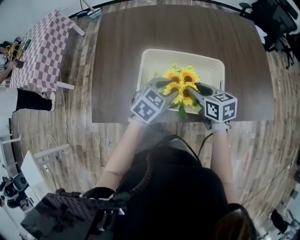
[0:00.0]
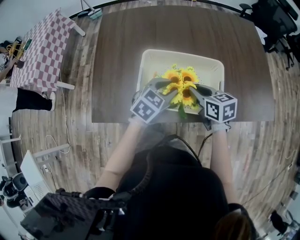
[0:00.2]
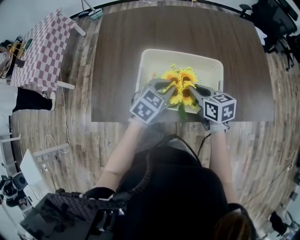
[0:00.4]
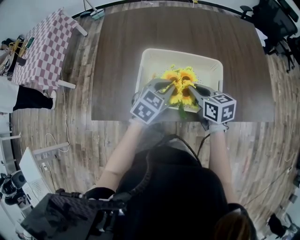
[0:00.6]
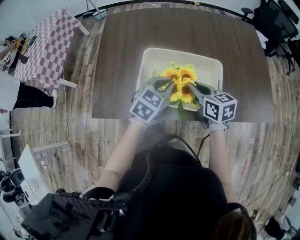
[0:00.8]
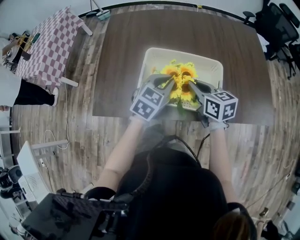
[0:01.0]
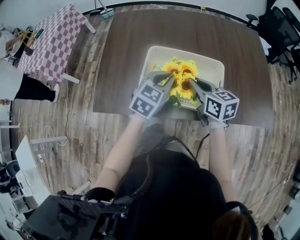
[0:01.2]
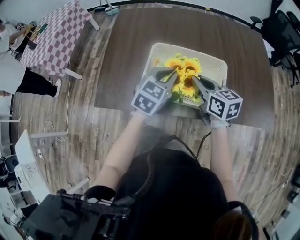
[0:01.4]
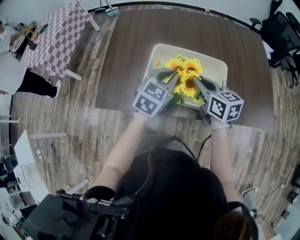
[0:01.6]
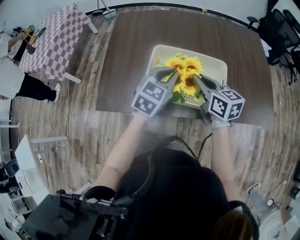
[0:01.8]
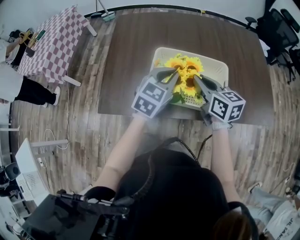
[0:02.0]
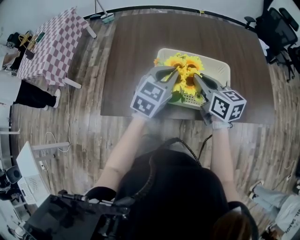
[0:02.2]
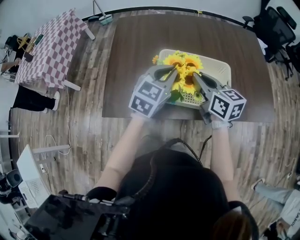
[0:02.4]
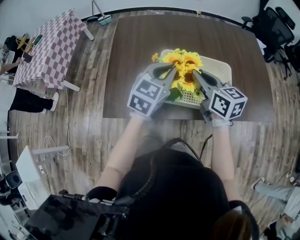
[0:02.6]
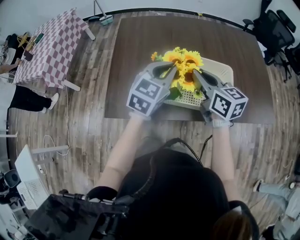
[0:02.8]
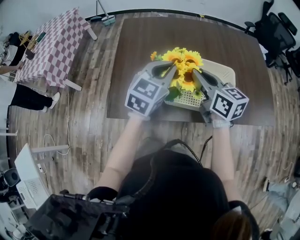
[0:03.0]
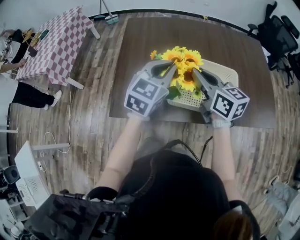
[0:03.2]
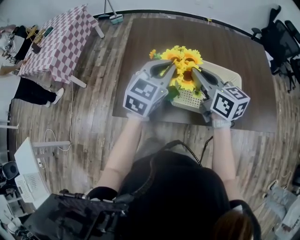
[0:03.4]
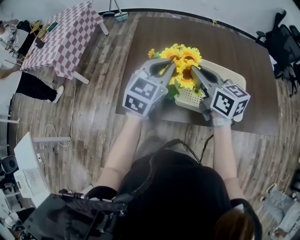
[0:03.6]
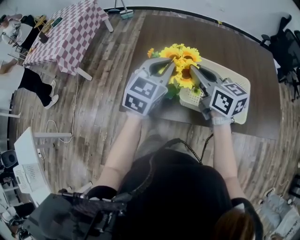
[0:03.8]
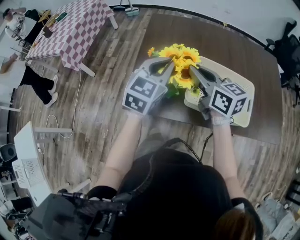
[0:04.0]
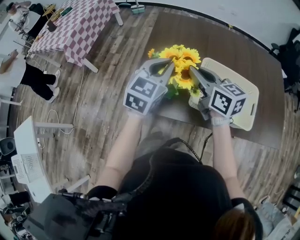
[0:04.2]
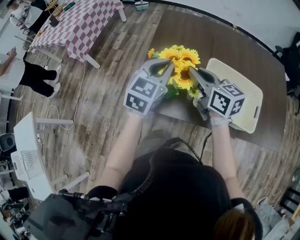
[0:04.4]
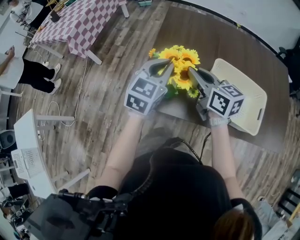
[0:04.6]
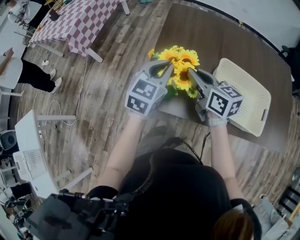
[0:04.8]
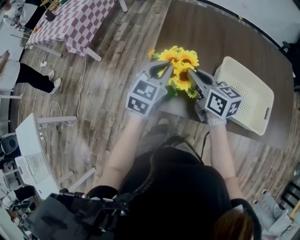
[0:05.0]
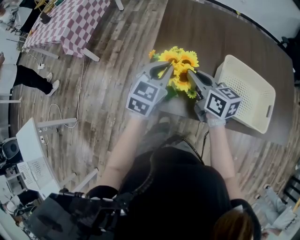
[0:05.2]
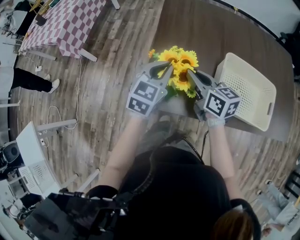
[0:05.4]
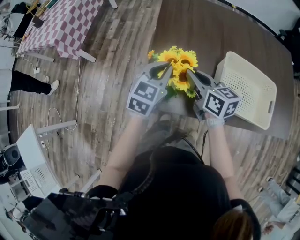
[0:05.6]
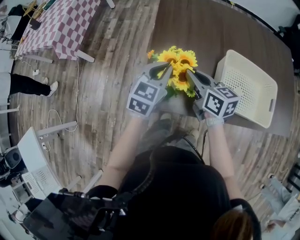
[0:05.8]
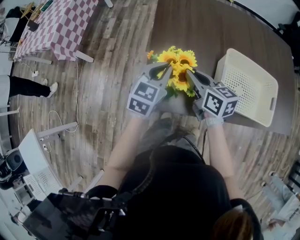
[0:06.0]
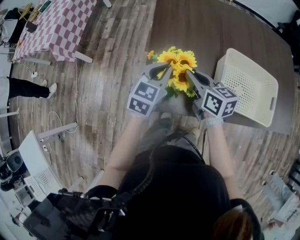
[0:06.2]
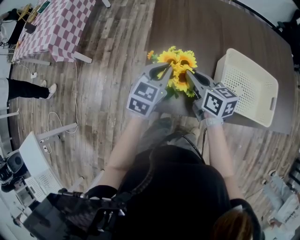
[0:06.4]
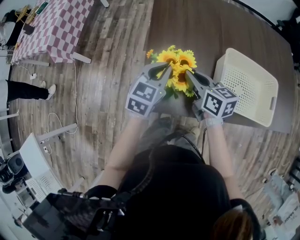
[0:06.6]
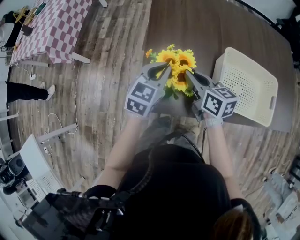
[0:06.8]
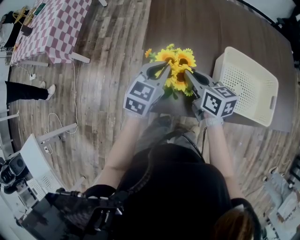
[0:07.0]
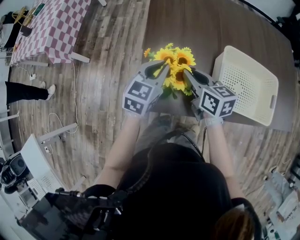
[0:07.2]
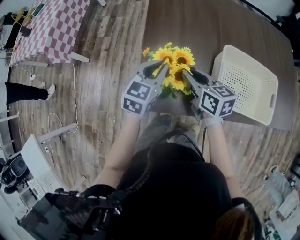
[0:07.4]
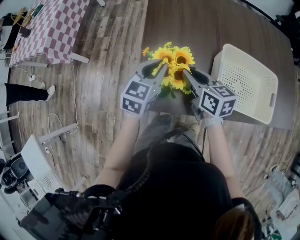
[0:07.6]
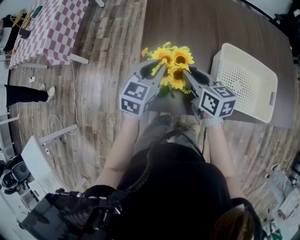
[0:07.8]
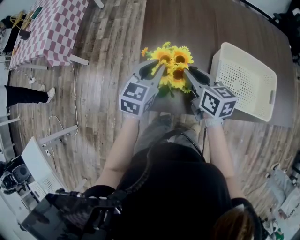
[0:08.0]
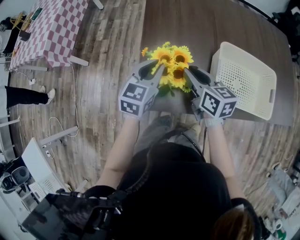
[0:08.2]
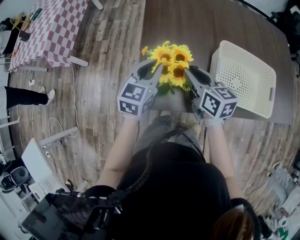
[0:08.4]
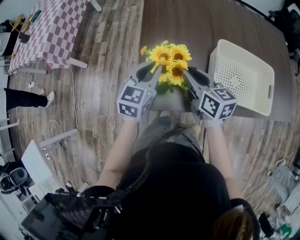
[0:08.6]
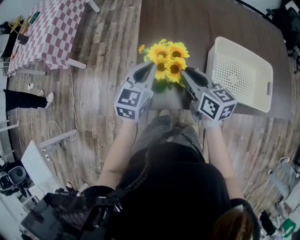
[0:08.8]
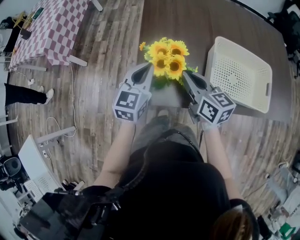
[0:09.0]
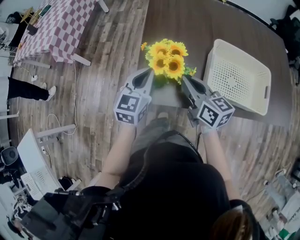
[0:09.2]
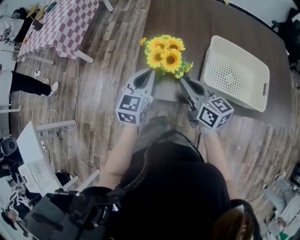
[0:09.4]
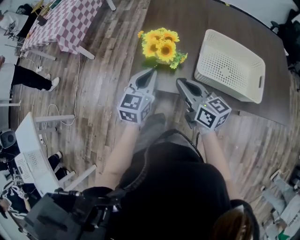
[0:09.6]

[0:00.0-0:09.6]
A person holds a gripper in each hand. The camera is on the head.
0:00.0 to 0:01.6: The two grippers go some 5 cm upward. The left gripper swivels about 20 degrees, and closes its fingers. The right gripper closes.
0:01.6 to 0:03.2: Both grippers travel together to the left and upward, approximately 15 cm.
0:03.2 to 0:04.8: The two grippers go about 20 cm to the left.
0:04.8 to 0:06.4: Both grippers travel together downward, approximately 10 cm.
0:06.4 to 0:08.0: The right gripper opens its fingers.
0:08.0 to 0:09.6: The two grippers go about 15 cm backward. The right gripper closes.

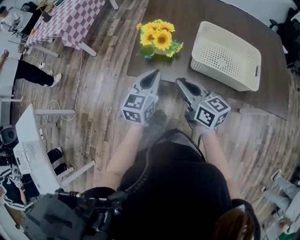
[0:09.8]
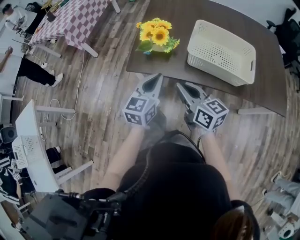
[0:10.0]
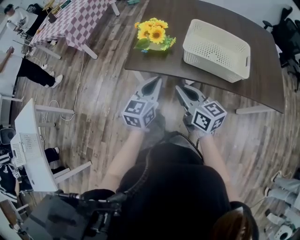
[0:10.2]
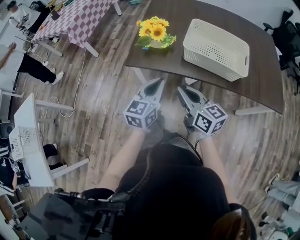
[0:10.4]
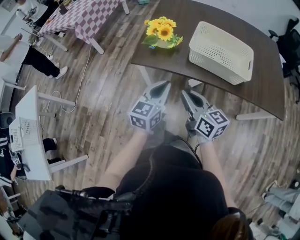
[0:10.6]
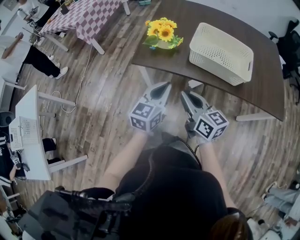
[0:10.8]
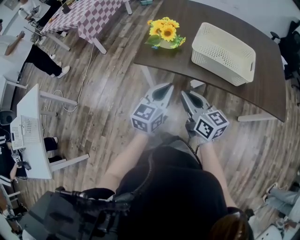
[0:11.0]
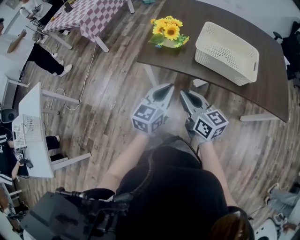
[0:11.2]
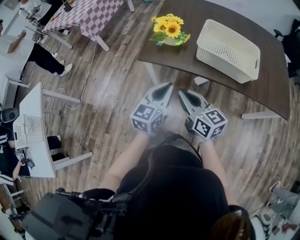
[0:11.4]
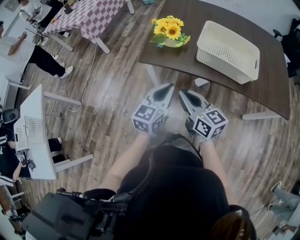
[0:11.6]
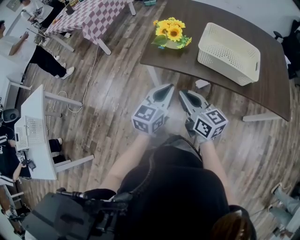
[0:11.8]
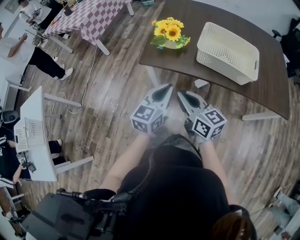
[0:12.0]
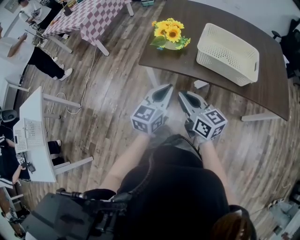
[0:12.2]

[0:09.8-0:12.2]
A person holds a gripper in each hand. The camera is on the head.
0:09.8 to 0:11.0: The two grippers go roughly 15 cm backward.
0:11.0 to 0:12.2: The grippers move only a little.

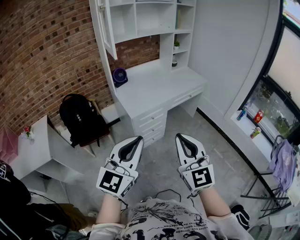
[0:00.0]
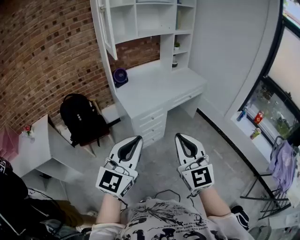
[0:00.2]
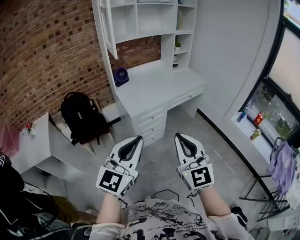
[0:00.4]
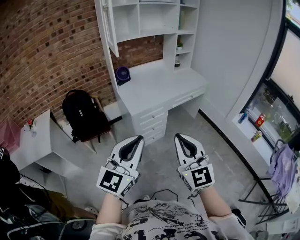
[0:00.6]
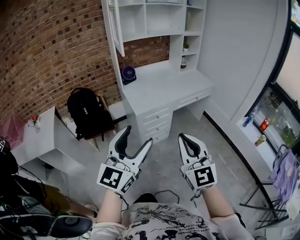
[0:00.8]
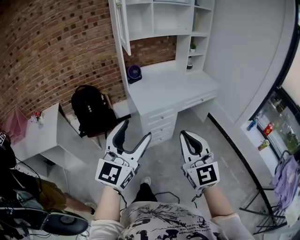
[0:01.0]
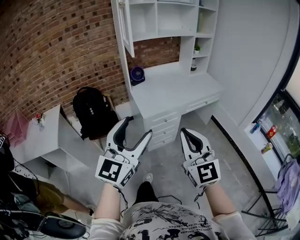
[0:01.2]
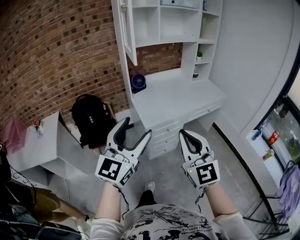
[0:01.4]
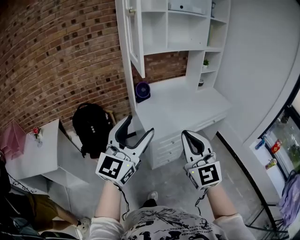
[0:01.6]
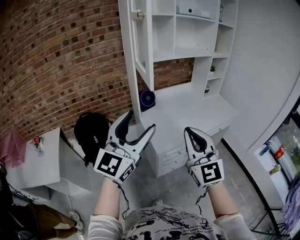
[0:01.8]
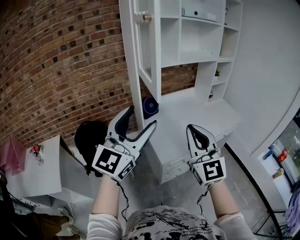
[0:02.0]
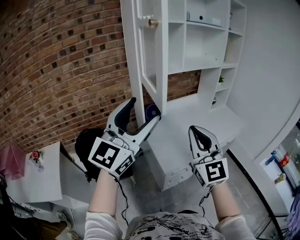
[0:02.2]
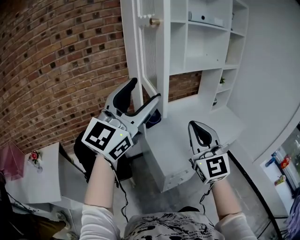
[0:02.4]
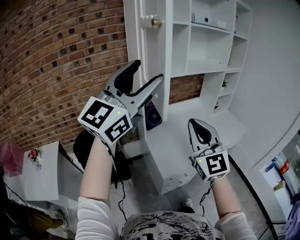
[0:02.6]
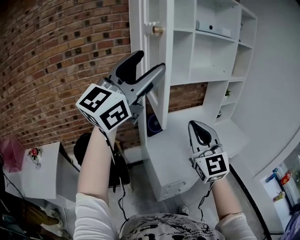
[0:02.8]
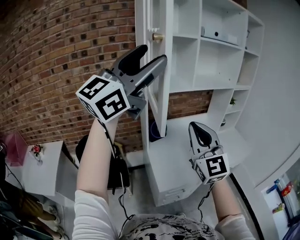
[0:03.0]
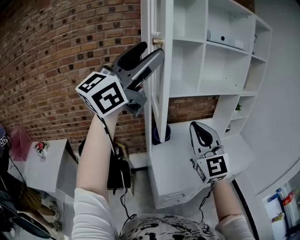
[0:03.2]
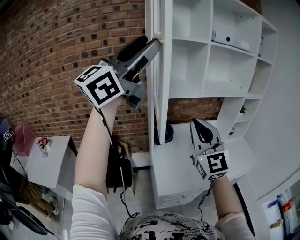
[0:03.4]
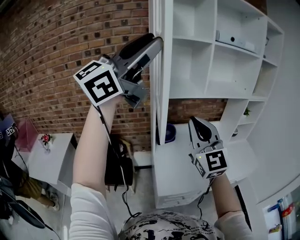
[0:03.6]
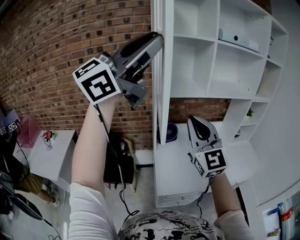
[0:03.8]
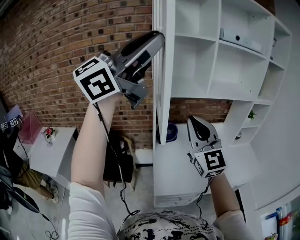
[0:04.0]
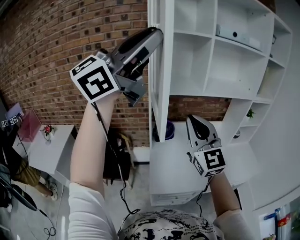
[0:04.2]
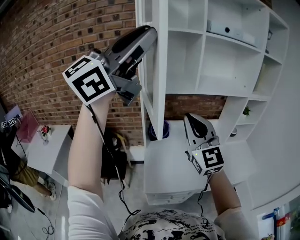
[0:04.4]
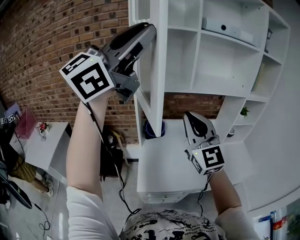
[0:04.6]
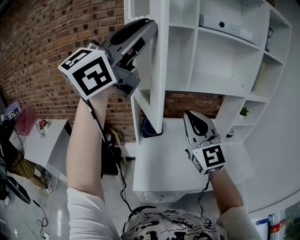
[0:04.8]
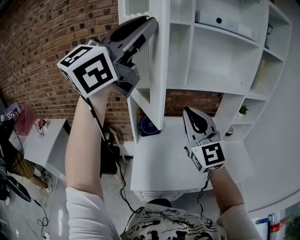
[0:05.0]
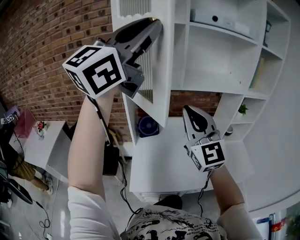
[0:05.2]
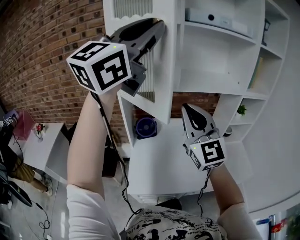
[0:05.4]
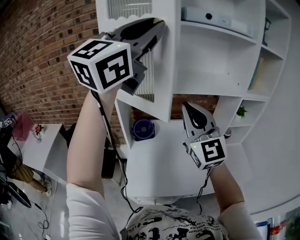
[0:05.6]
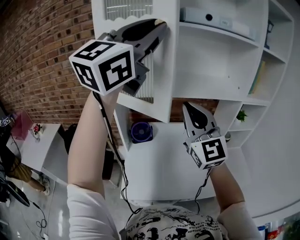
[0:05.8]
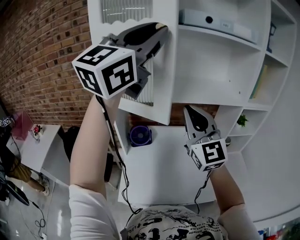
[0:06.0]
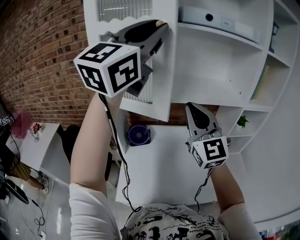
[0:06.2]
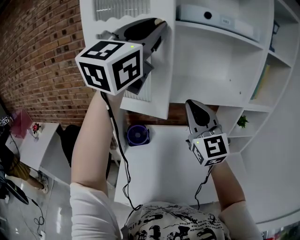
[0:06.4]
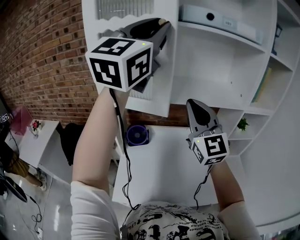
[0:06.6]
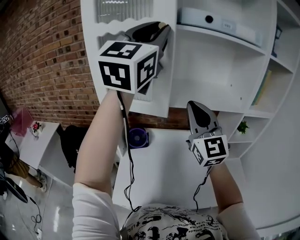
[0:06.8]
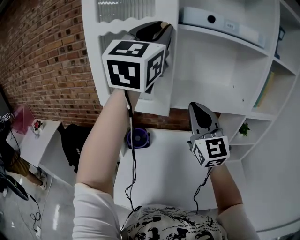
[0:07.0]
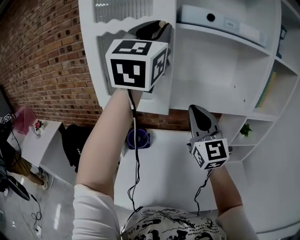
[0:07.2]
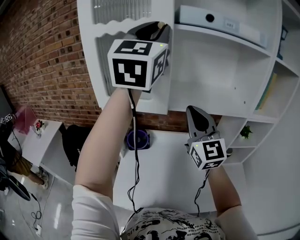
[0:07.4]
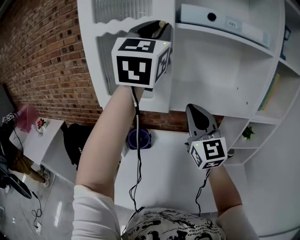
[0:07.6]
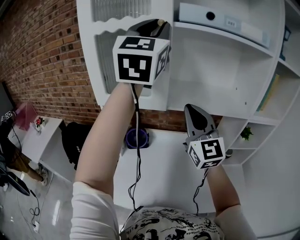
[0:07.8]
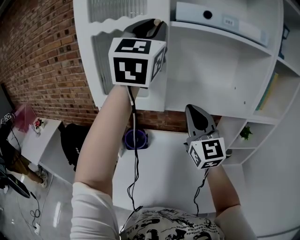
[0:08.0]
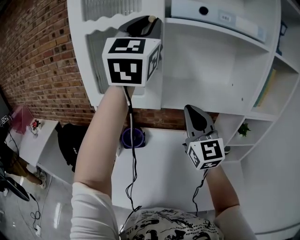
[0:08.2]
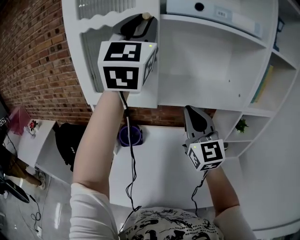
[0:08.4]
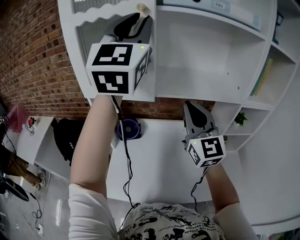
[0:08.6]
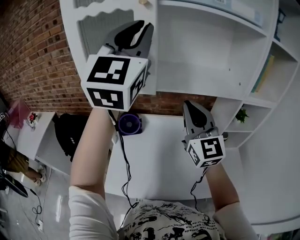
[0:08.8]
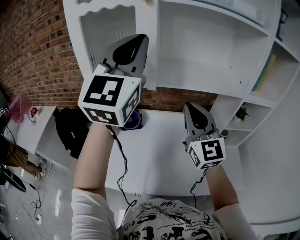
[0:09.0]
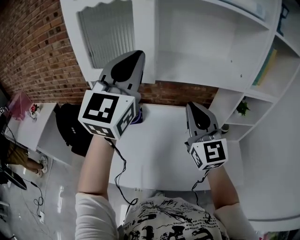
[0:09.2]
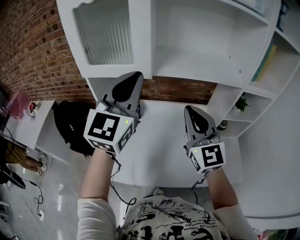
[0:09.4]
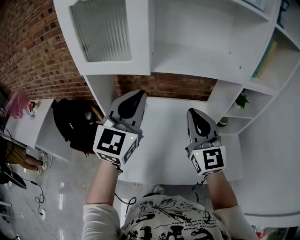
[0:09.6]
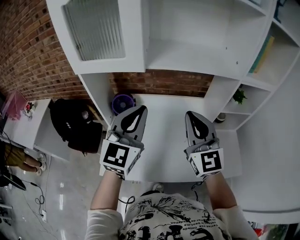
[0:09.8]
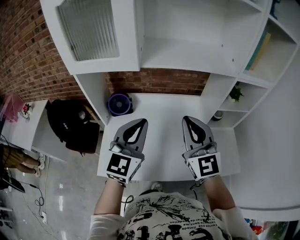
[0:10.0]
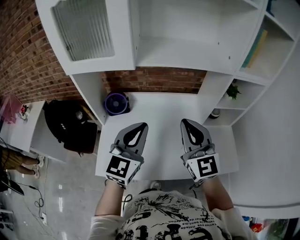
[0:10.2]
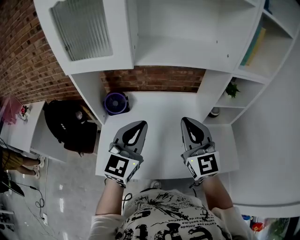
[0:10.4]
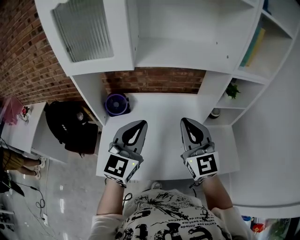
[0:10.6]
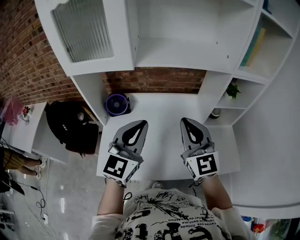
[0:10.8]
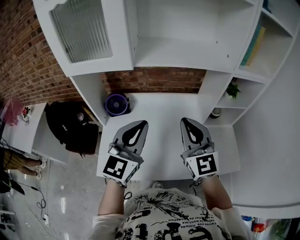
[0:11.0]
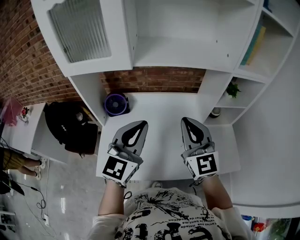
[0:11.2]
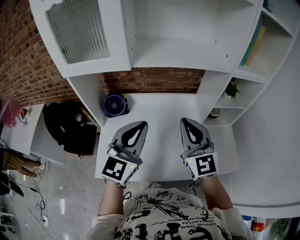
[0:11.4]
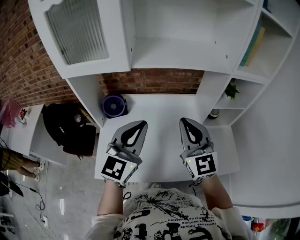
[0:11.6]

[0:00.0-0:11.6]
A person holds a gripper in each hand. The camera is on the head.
0:00.0 to 0:01.4: The right gripper travels forward by roughly 10 cm; the left gripper goes some 15 cm forward and to the left, and opens.
0:01.4 to 0:02.8: Both grippers are carried forward, roughly 40 cm. The left gripper goes about 30 cm upward, and swivels about 20 degrees.
0:02.8 to 0:04.4: The left gripper is displaced to the right, forward and upward by approximately 15 cm, and closes up, while the right gripper moves forward and to the right, some 15 cm, and swivels approximately 20 degrees.
0:04.4 to 0:05.8: Both grippers travel together forward and to the right, roughly 20 cm. The left gripper swivels about 20 degrees.
0:05.8 to 0:07.2: The left gripper travels forward by some 15 cm, and rotates roughly 30 degrees. Meanwhile the right gripper moves forward and to the right, approximately 15 cm.
0:07.2 to 0:08.8: The left gripper heads downward, covering approximately 5 cm. Meanwhile the right gripper changes place by roughly 5 cm.
0:08.8 to 0:10.2: The left gripper moves downward, approximately 35 cm, and swivels roughly 30 degrees; the right gripper goes roughly 15 cm downward, backward and to the right.
0:10.2 to 0:11.6: The grippers move only a little.
